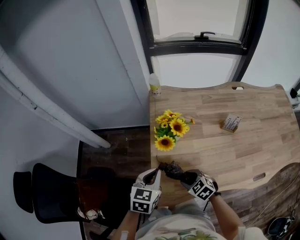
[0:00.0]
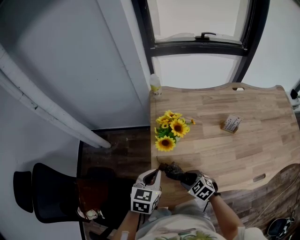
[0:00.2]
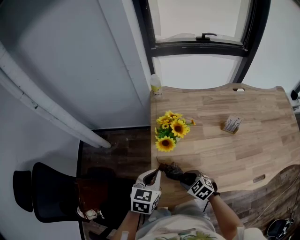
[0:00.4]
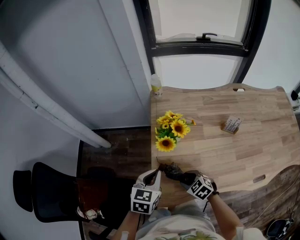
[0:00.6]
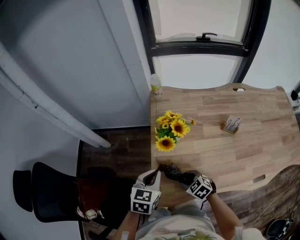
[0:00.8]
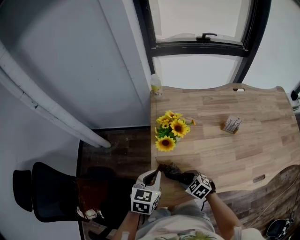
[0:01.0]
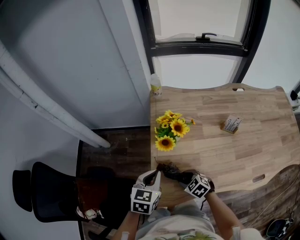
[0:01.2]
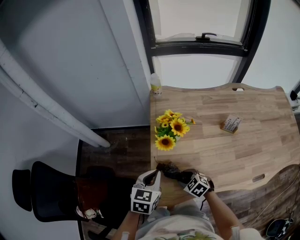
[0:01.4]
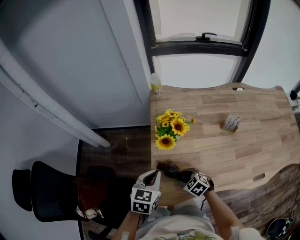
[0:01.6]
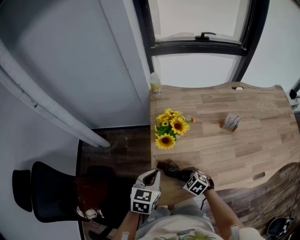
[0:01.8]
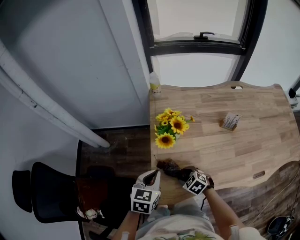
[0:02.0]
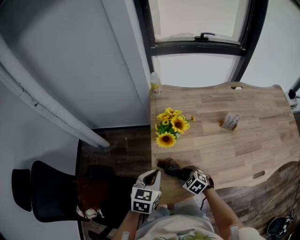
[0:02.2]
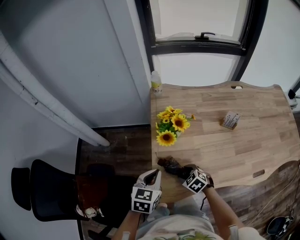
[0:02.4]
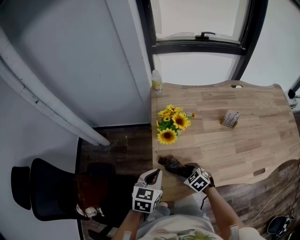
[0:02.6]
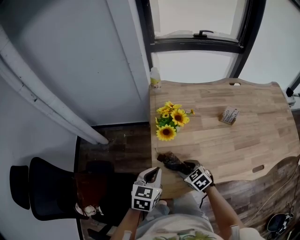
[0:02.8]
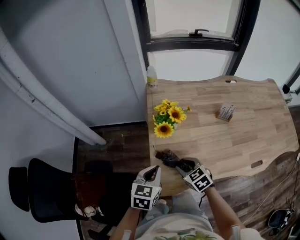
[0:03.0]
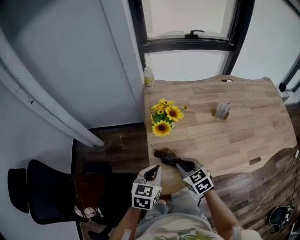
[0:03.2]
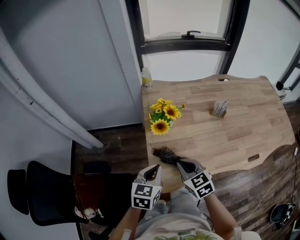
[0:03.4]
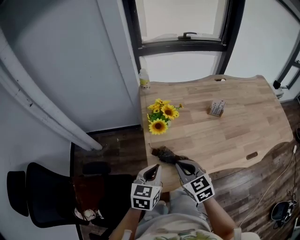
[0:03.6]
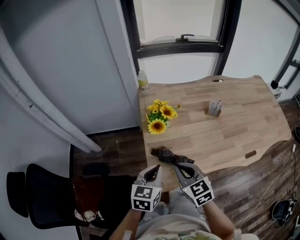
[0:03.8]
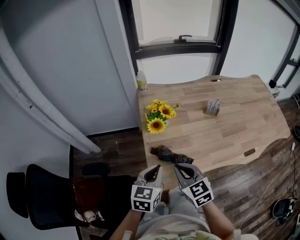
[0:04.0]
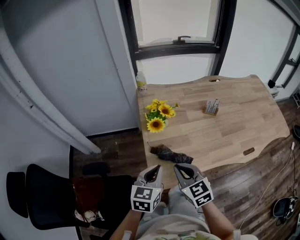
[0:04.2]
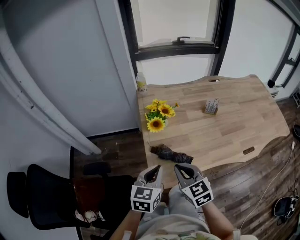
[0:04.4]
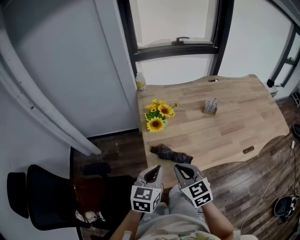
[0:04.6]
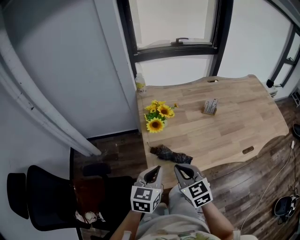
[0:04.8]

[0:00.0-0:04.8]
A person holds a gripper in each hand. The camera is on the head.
0:00.0 to 0:01.6: There are only small adjustments of the grippers.
0:01.6 to 0:03.2: The right gripper heads upward, covering approximately 10 cm, rotates roughly 30 degrees, and closes. Meanwhile the left gripper shifts approximately 5 cm backward.
0:03.2 to 0:04.8: The left gripper travels backward by some 5 cm; the right gripper travels upward and backward by approximately 10 cm.

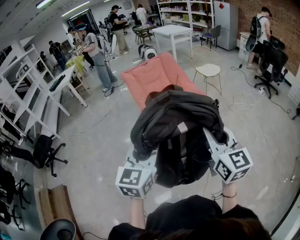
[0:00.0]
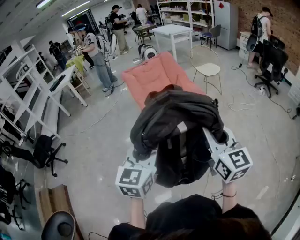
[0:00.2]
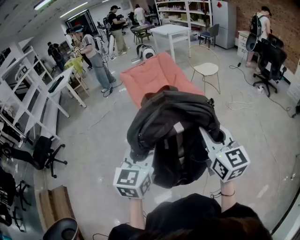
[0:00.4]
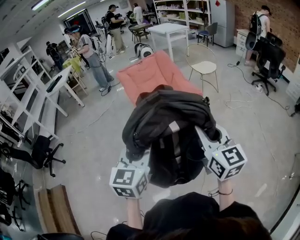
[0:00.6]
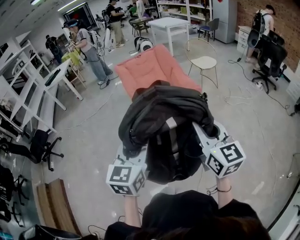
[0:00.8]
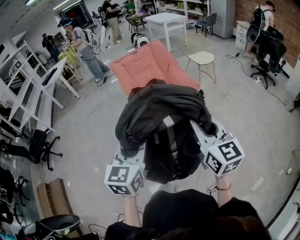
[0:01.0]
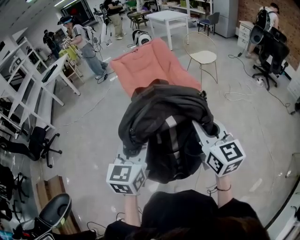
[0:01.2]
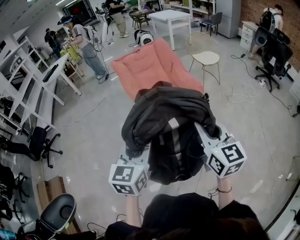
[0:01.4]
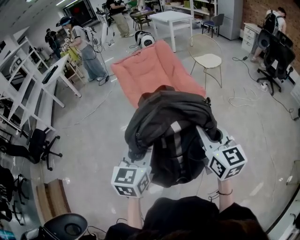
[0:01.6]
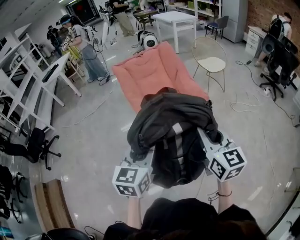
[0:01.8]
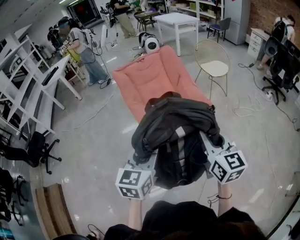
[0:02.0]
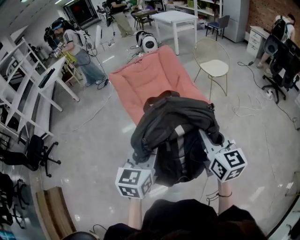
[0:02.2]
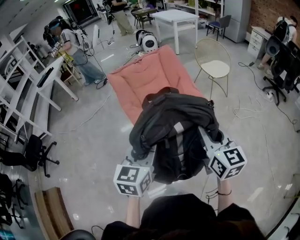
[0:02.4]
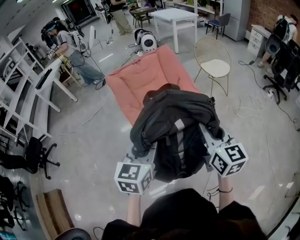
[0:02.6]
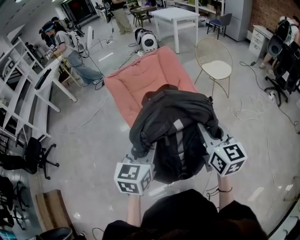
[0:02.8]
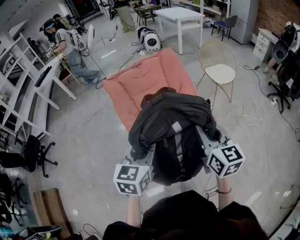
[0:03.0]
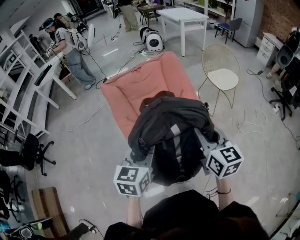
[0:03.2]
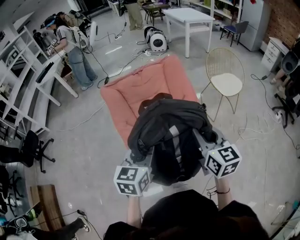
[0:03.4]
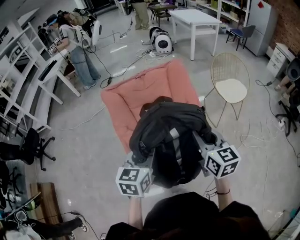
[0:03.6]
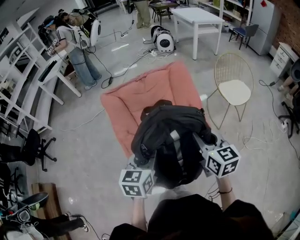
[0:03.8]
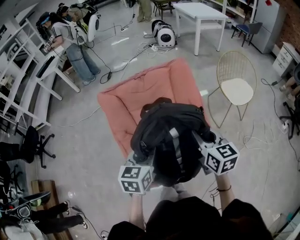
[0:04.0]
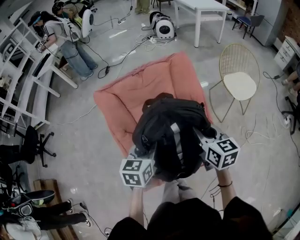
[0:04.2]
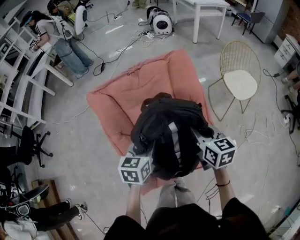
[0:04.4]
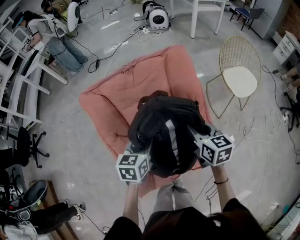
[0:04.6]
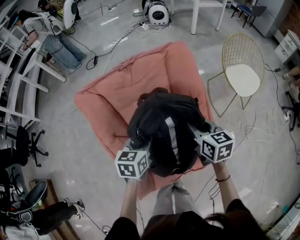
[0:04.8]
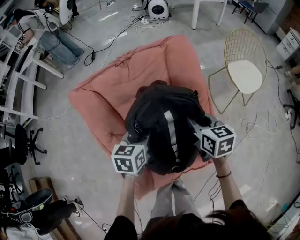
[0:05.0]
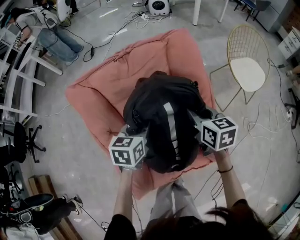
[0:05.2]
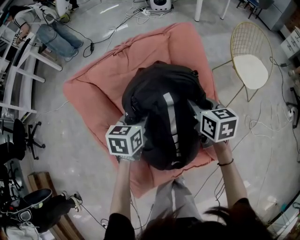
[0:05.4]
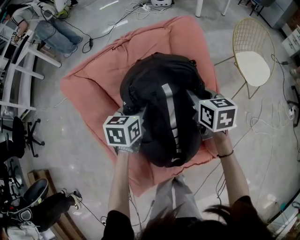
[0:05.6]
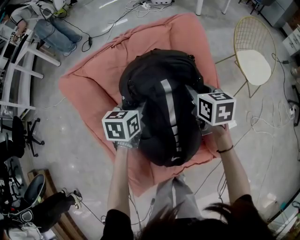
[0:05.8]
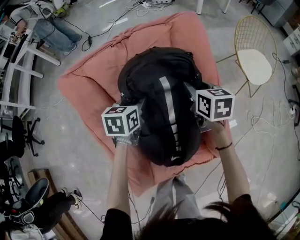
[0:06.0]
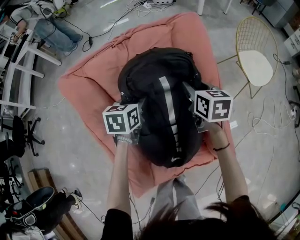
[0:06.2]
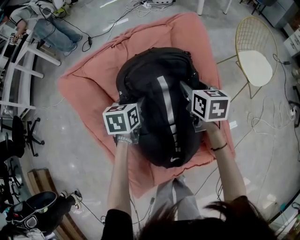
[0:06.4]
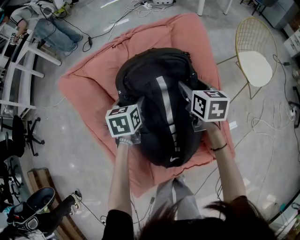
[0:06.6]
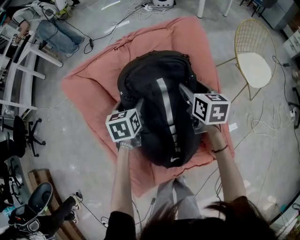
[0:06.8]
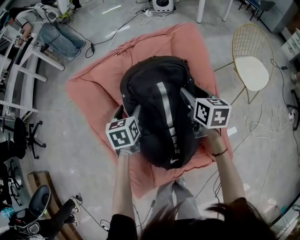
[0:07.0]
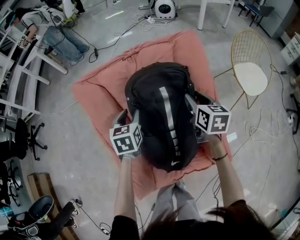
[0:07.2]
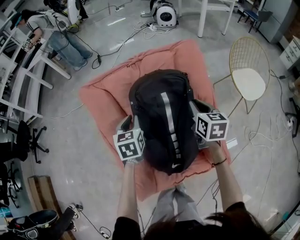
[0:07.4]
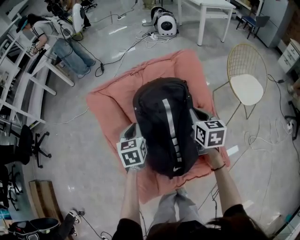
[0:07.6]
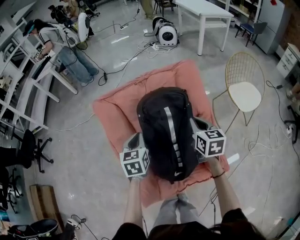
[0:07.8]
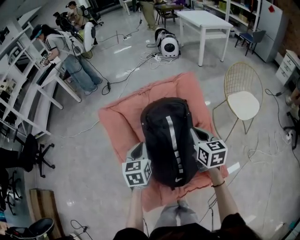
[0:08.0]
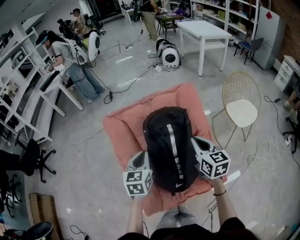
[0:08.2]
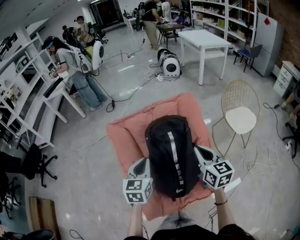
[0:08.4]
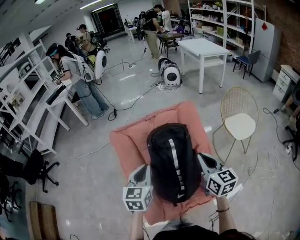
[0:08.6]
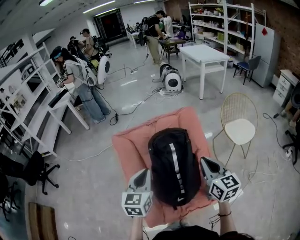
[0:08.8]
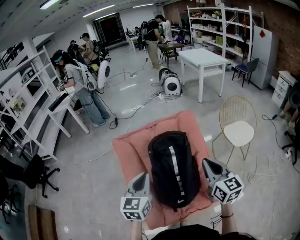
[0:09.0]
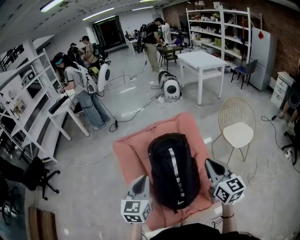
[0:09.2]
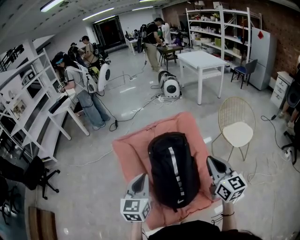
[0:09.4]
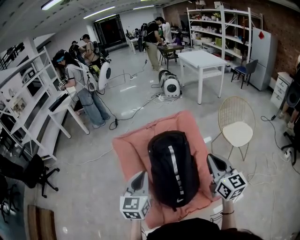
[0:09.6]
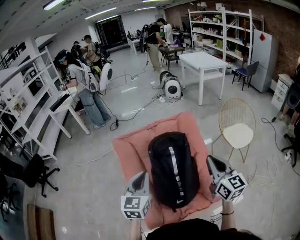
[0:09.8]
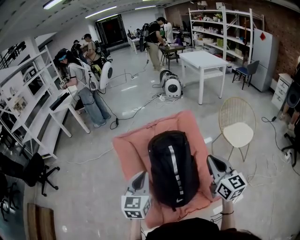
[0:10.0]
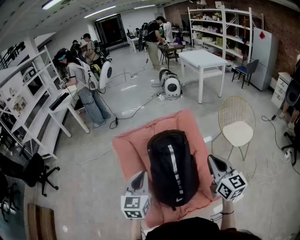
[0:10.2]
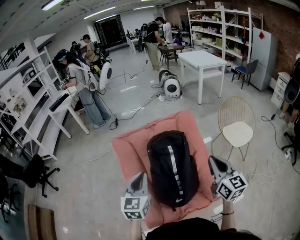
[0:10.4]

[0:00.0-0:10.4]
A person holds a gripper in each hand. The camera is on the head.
0:00.0 to 0:01.4: The two grippers go approximately 10 cm forward and to the right.
0:01.4 to 0:03.0: The grippers both shift forward by some 40 cm.
0:03.0 to 0:04.4: Both grippers move forward and downward, approximately 35 cm. The right gripper rotates some 20 degrees.
0:04.4 to 0:06.0: The two grippers go roughly 20 cm forward and downward.
0:06.0 to 0:07.4: The right gripper shifts by some 5 cm, and opens, then closes again. The left gripper heads to the left and upward, covering about 10 cm, swivels approximately 20 degrees, and opens, then closes again.
0:07.4 to 0:09.0: The grippers both shift upward and backward by some 30 cm. The right gripper turns by roughly 30 degrees. Meanwhile the left gripper rotates some 30 degrees.
0:09.0 to 0:10.4: The grippers move only a little.

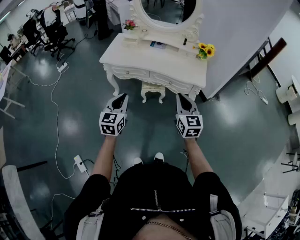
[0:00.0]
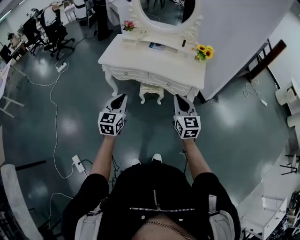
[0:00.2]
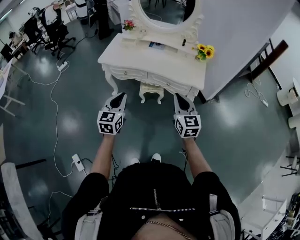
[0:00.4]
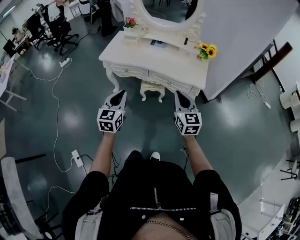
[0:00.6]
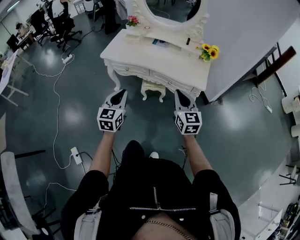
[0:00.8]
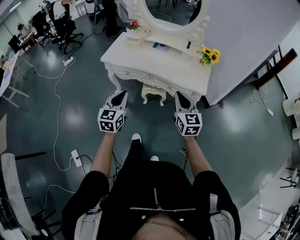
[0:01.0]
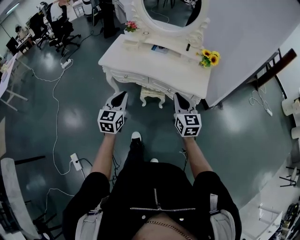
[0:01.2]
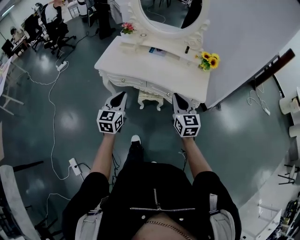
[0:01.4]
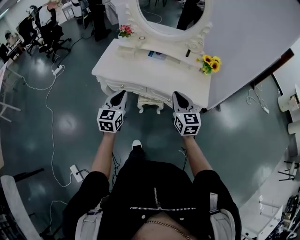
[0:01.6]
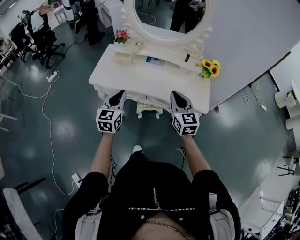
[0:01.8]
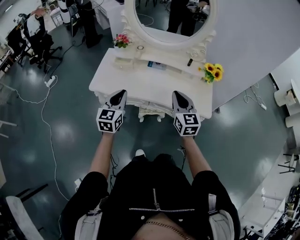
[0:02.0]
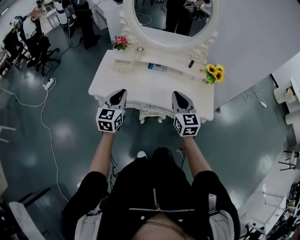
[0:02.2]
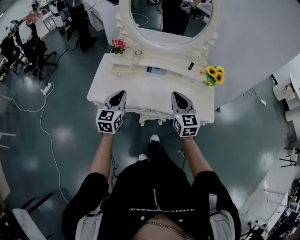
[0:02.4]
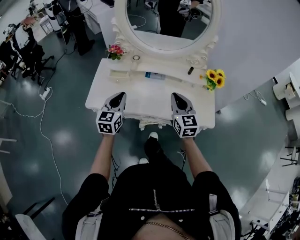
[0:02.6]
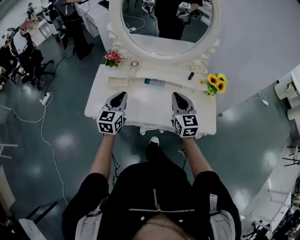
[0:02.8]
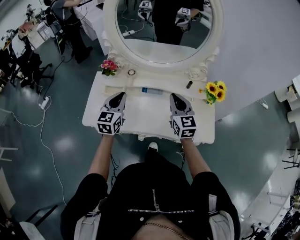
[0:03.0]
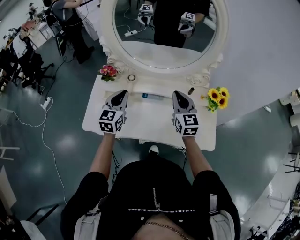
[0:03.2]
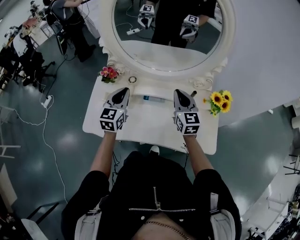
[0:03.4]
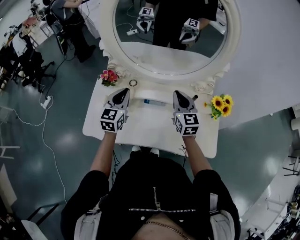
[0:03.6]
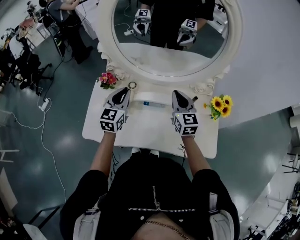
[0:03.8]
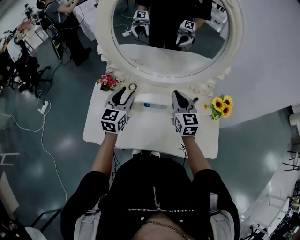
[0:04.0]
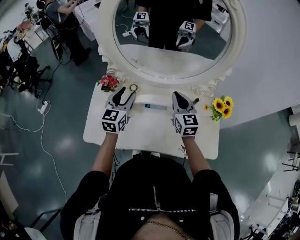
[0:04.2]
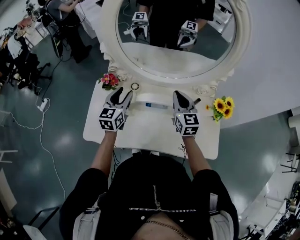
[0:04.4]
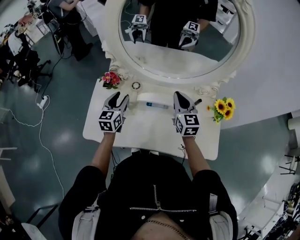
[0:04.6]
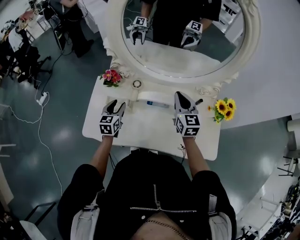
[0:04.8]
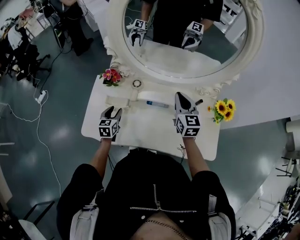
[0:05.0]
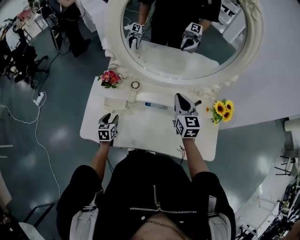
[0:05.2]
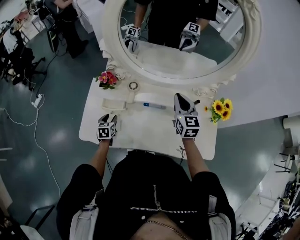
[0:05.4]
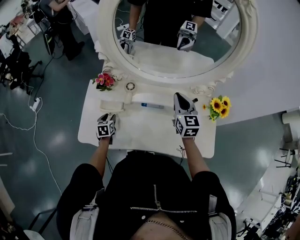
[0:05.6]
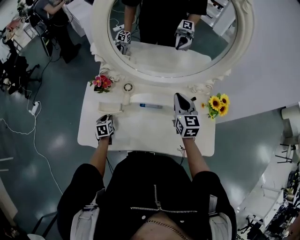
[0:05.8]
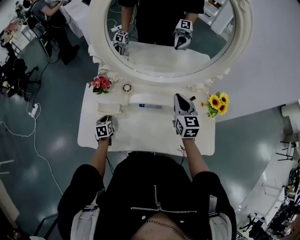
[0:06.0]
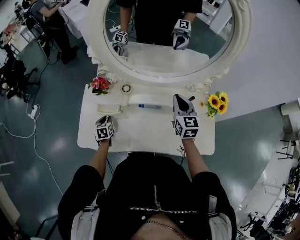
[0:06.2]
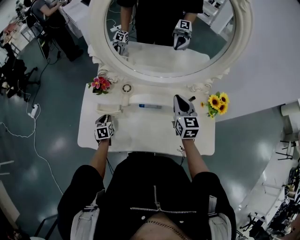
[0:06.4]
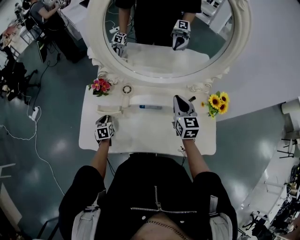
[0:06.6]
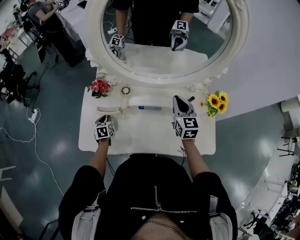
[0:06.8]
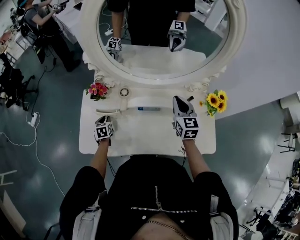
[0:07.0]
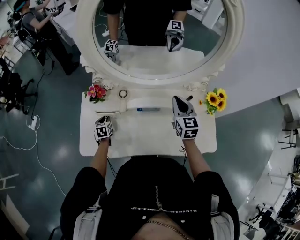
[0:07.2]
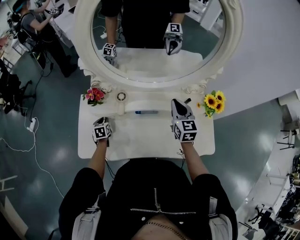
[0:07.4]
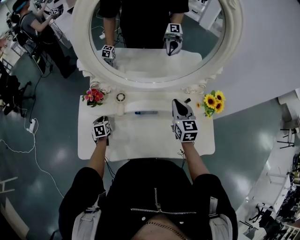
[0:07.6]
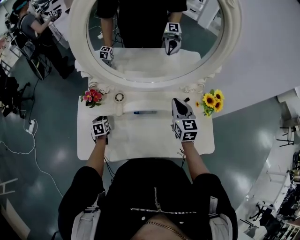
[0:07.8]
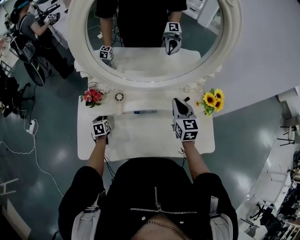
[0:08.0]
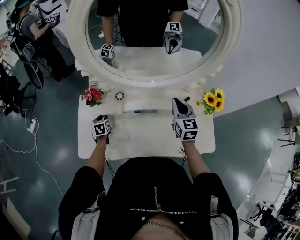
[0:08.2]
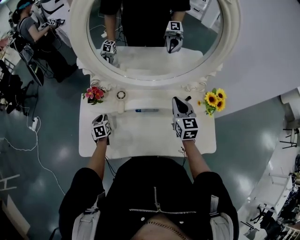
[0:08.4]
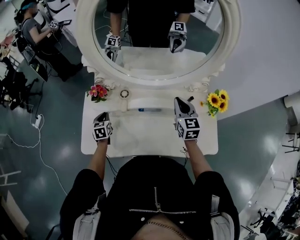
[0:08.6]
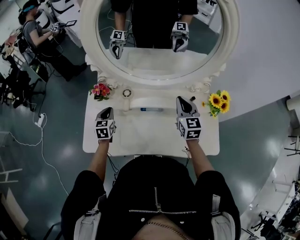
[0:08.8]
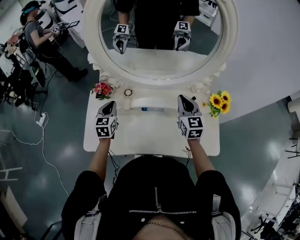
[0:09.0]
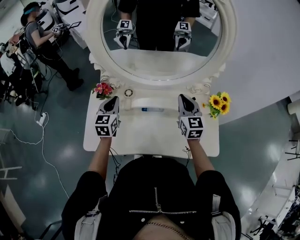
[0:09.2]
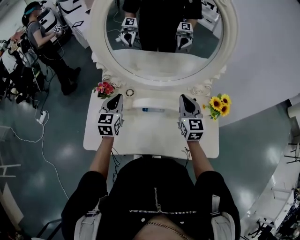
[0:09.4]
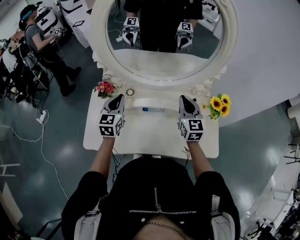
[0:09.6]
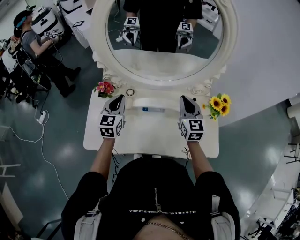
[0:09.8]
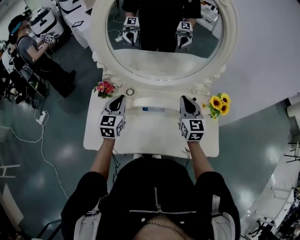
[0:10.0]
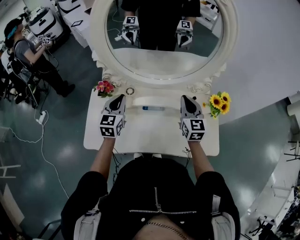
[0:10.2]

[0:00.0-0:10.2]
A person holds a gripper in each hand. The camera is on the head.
0:00.0 to 0:01.4: The two grippers go some 15 cm forward.
0:01.4 to 0:03.0: The two grippers go approximately 40 cm forward.
0:03.0 to 0:04.4: The grippers both shift forward by roughly 15 cm. The left gripper opens its fingers.
0:04.4 to 0:05.8: The left gripper heads downward and to the left, covering about 30 cm, and angles its fingers downward, by approximately 40 degrees.
0:05.8 to 0:07.2: The grippers make only small movements.
0:07.2 to 0:08.8: The left gripper is displaced upward by some 15 cm.
0:08.8 to 0:10.2: The left gripper goes roughly 15 cm upward and to the right, and swivels roughly 20 degrees.
